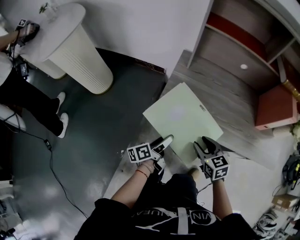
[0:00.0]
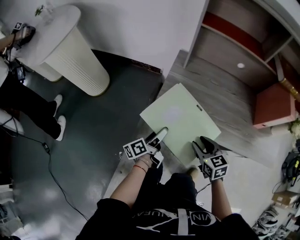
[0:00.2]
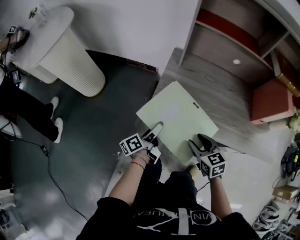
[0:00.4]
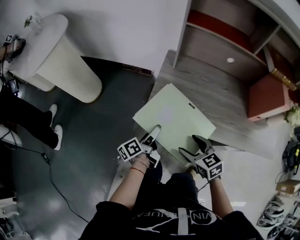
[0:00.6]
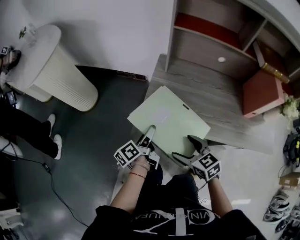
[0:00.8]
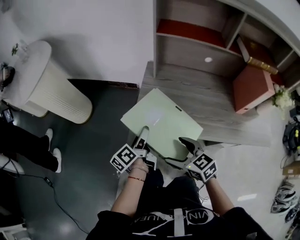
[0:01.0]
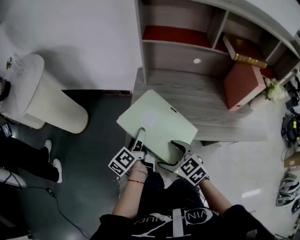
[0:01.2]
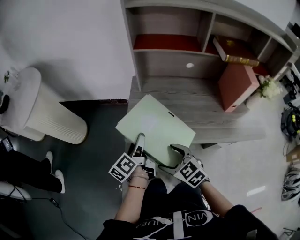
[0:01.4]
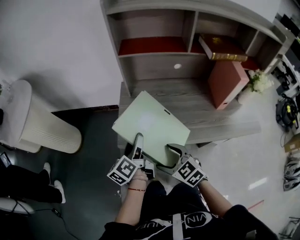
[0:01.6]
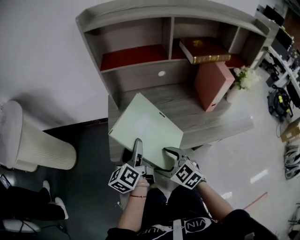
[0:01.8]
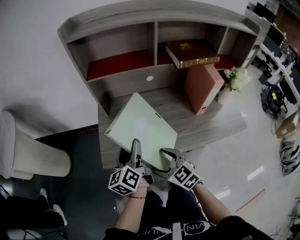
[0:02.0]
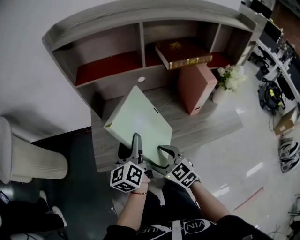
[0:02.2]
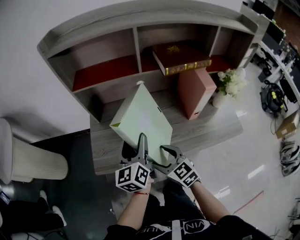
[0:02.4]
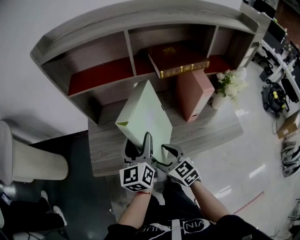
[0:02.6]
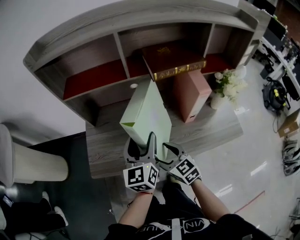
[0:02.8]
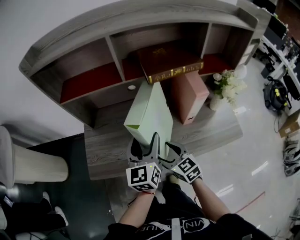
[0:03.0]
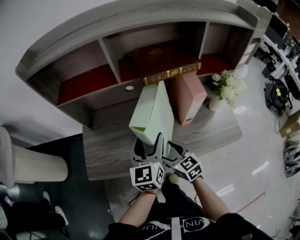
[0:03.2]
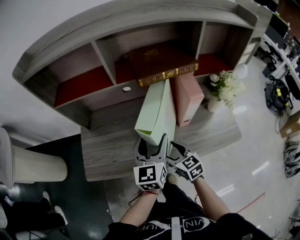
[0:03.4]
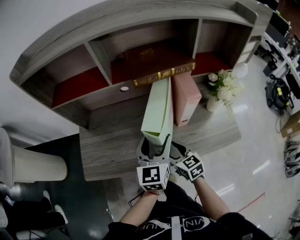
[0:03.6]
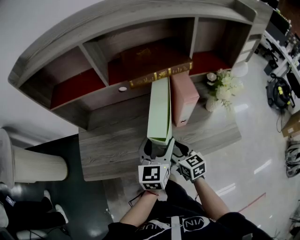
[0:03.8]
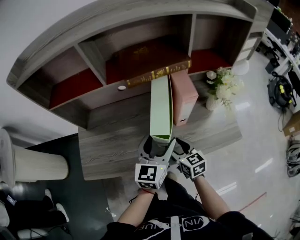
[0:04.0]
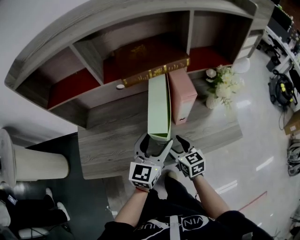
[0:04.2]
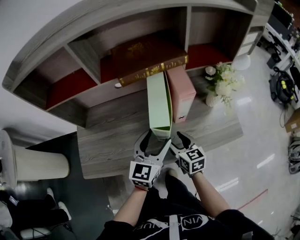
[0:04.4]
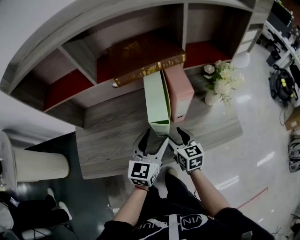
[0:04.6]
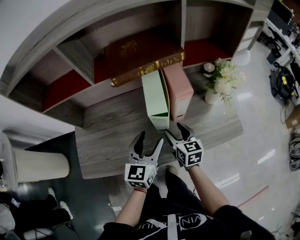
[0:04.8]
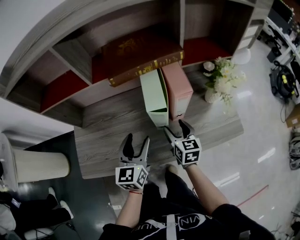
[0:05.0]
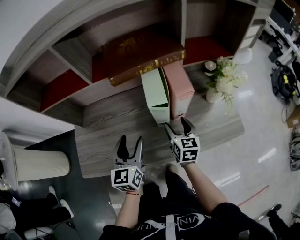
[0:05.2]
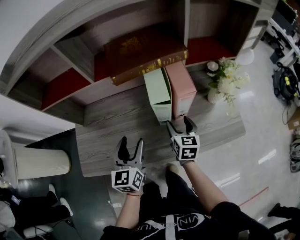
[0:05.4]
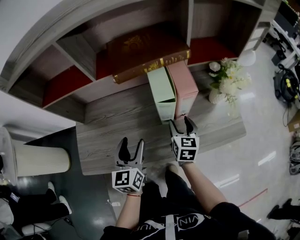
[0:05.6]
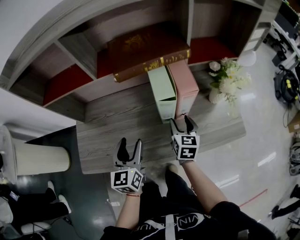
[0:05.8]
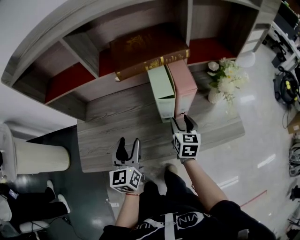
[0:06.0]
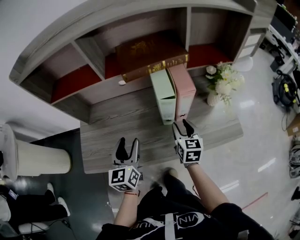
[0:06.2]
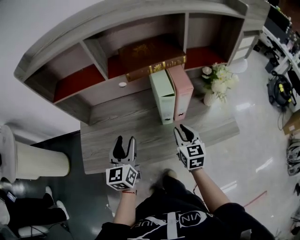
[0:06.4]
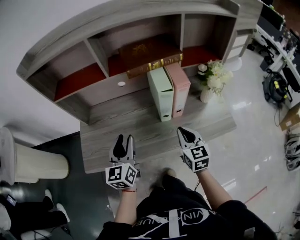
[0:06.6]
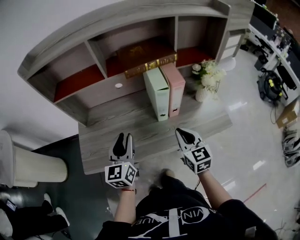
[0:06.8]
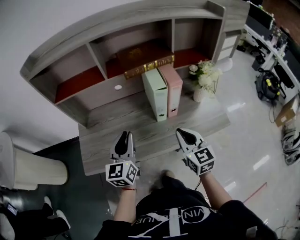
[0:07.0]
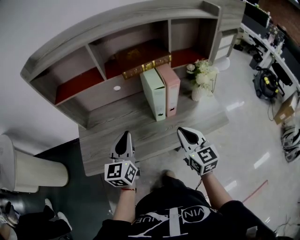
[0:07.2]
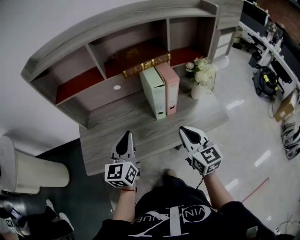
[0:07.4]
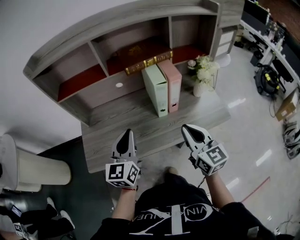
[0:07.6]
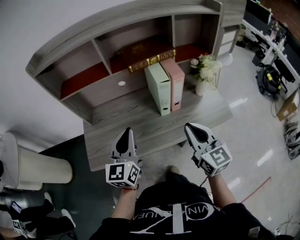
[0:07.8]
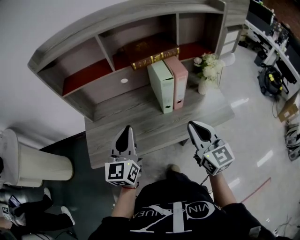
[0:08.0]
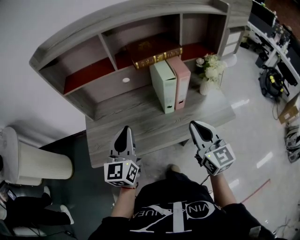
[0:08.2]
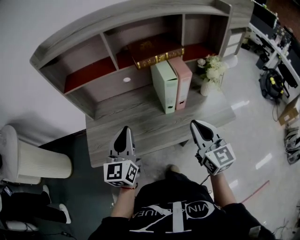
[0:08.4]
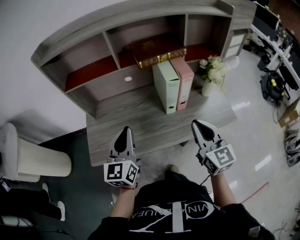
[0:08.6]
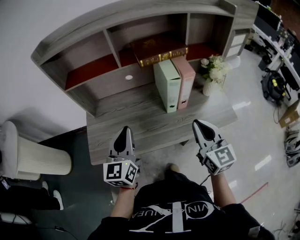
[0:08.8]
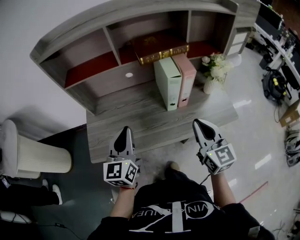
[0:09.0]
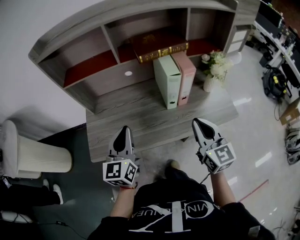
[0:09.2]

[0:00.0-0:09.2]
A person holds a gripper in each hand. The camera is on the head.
0:00.0 to 0:01.6: The right gripper travels upward by roughly 5 cm, and opens, while the left gripper goes approximately 20 cm upward and forward, and changes its angle by roughly 20 degrees.
0:01.6 to 0:03.0: The grippers both shift to the right by approximately 30 cm. The left gripper rotates around the line of its fingers by some 40 degrees, clockwise from behind, while the right gripper swivels about 20 degrees.
0:03.0 to 0:04.6: The left gripper goes approximately 15 cm to the right and downward, and rotates some 20 degrees; the right gripper moves to the right and forward, some 15 cm, and changes its angle by about 20 degrees.
0:04.6 to 0:06.2: The left gripper heads to the left, covering about 15 cm, and turns by some 20 degrees.
0:06.2 to 0:07.6: The left gripper shifts about 10 cm upward and backward, and closes; the right gripper goes some 25 cm upward and backward, swivels some 20 degrees, and closes up.
0:07.6 to 0:09.2: The left gripper moves to the left, approximately 5 cm.

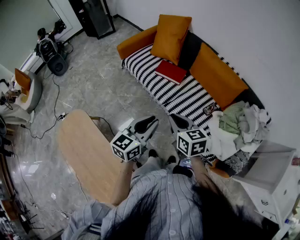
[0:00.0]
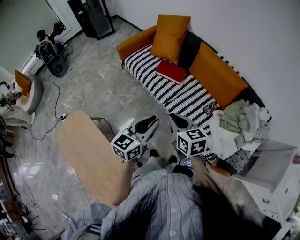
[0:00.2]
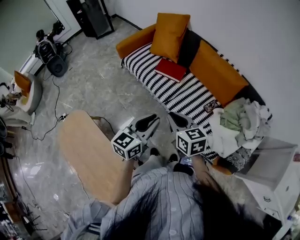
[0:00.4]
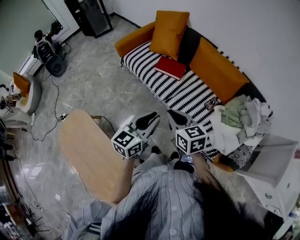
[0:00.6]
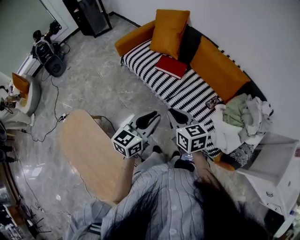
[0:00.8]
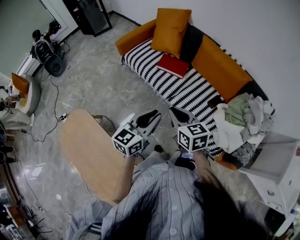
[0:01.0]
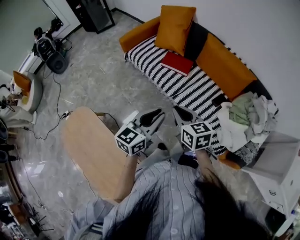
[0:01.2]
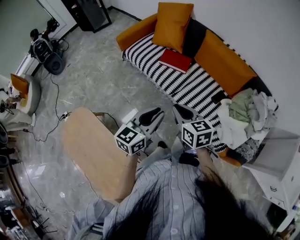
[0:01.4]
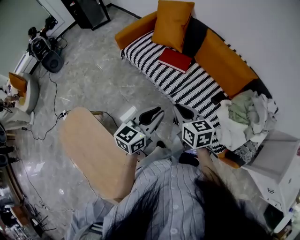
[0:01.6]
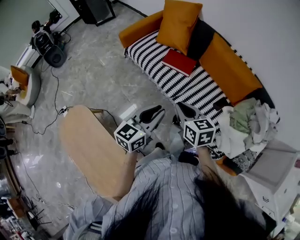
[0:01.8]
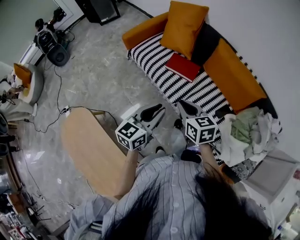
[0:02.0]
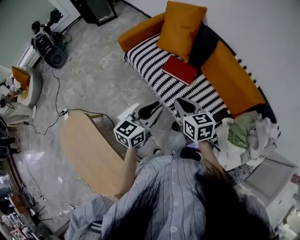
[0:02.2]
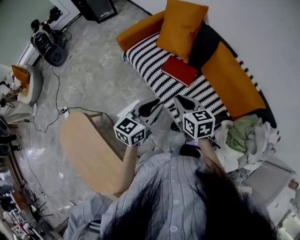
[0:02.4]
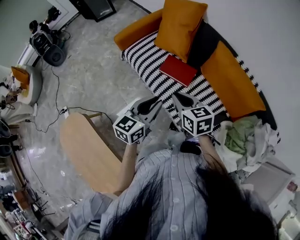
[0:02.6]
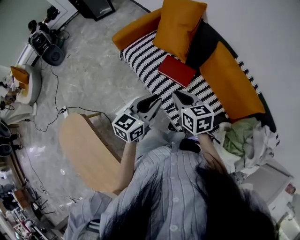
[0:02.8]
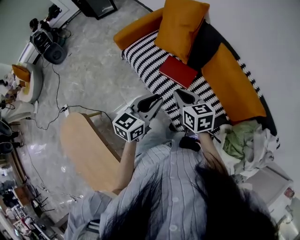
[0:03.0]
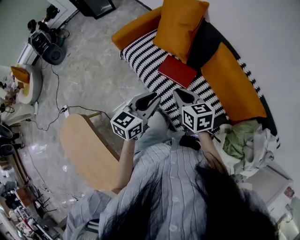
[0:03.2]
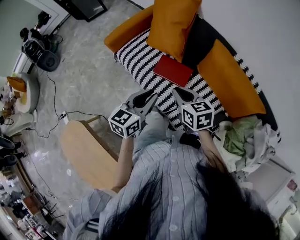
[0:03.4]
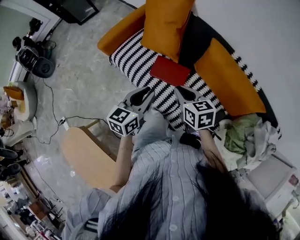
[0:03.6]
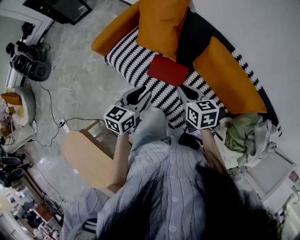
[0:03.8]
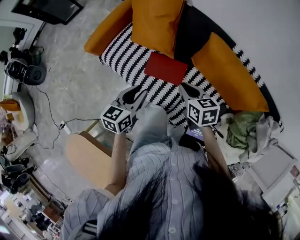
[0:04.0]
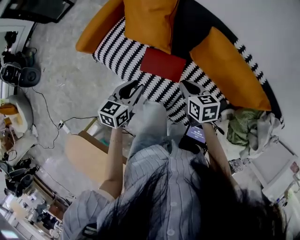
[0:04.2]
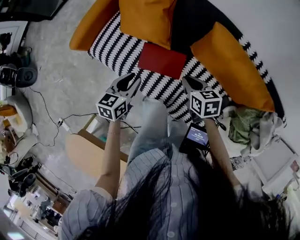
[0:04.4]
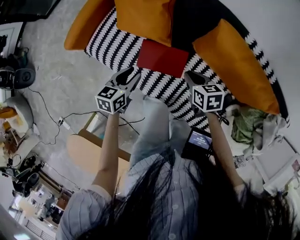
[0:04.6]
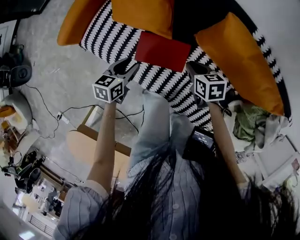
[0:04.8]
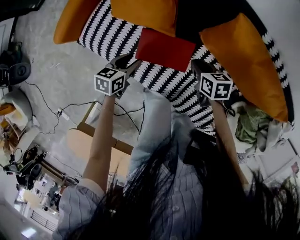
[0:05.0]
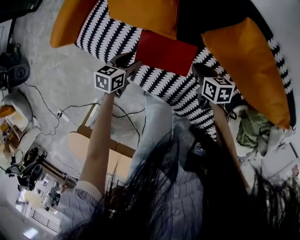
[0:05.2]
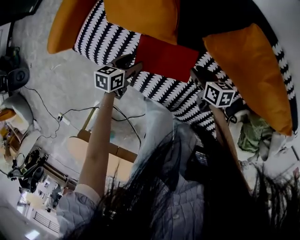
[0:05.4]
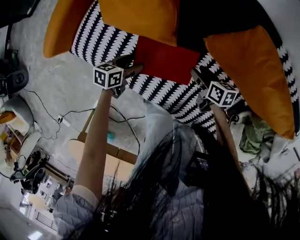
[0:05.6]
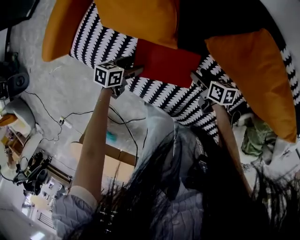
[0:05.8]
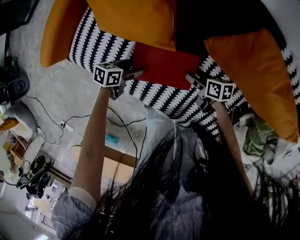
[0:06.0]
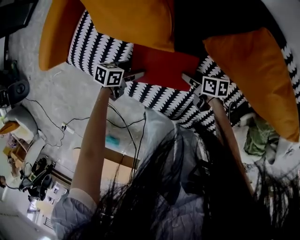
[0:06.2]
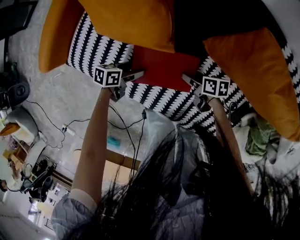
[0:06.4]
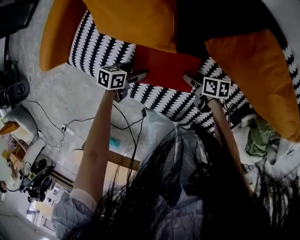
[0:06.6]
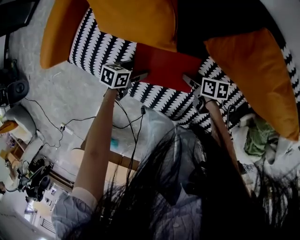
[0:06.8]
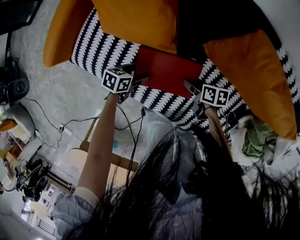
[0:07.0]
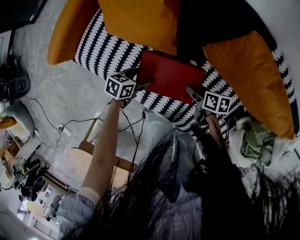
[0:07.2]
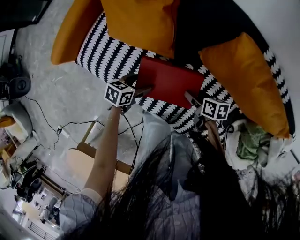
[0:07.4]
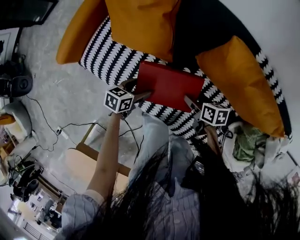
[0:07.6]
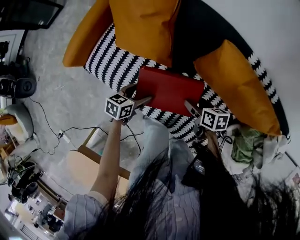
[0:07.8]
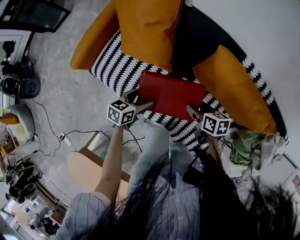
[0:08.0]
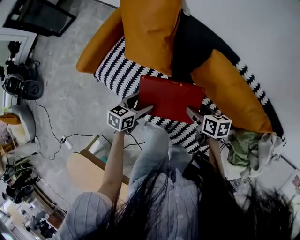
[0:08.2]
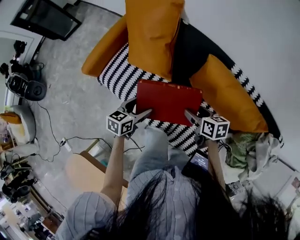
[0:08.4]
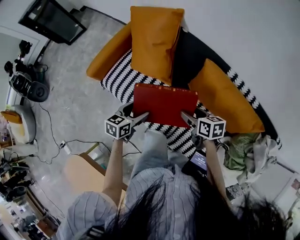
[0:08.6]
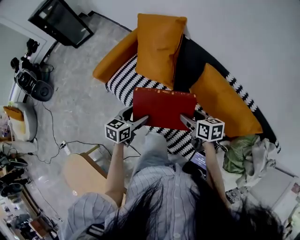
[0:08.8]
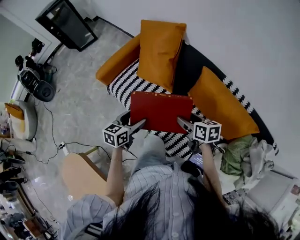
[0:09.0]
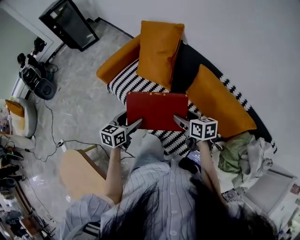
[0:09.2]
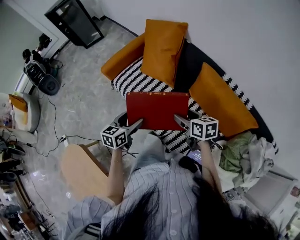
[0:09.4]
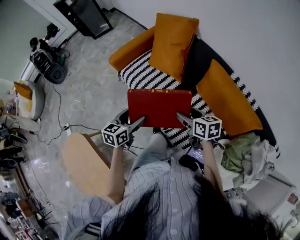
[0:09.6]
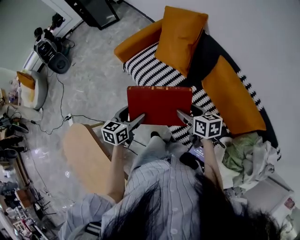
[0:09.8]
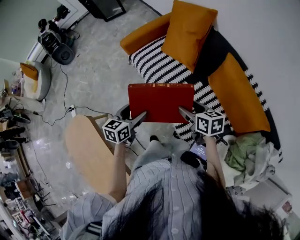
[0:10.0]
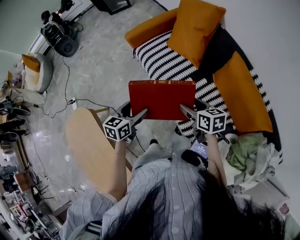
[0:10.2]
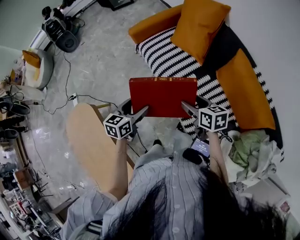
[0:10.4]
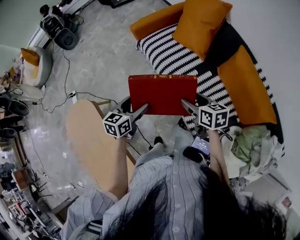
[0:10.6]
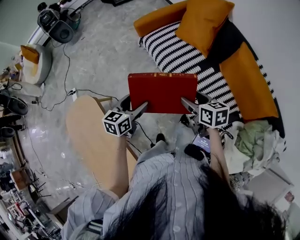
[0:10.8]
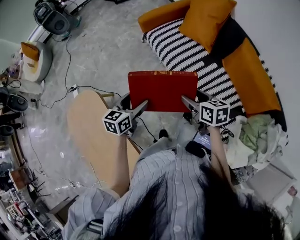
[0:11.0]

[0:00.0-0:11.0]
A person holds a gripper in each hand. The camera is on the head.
0:00.0 to 0:01.6: The left gripper shifts by some 5 cm, while the right gripper changes place by some 5 cm.
0:01.6 to 0:03.2: The grippers both shift forward by about 30 cm.
0:03.2 to 0:04.8: Both grippers travel together downward and forward, some 40 cm. The right gripper rotates approximately 30 degrees, while the left gripper changes its angle by roughly 30 degrees.
0:04.8 to 0:06.2: The two grippers go some 20 cm downward. The right gripper rotates some 30 degrees, and opens; the left gripper changes its angle by roughly 30 degrees, and opens up.
0:06.2 to 0:07.8: Both grippers travel together upward, about 20 cm.
0:07.8 to 0:09.4: Both grippers move upward and backward, roughly 30 cm. The right gripper swivels roughly 30 degrees, while the left gripper rotates about 40 degrees.
0:09.4 to 0:11.0: The two grippers go roughly 25 cm to the left and backward.

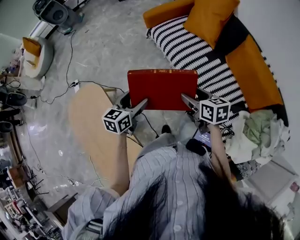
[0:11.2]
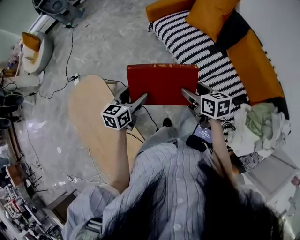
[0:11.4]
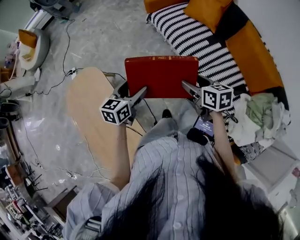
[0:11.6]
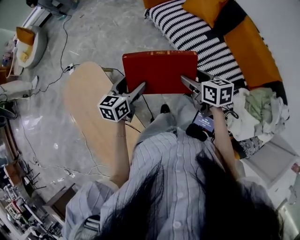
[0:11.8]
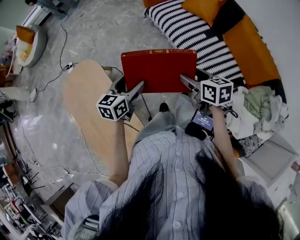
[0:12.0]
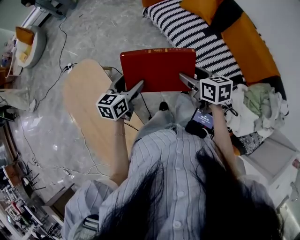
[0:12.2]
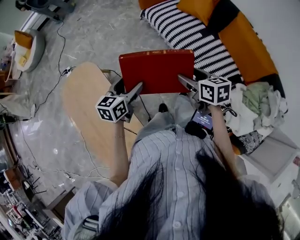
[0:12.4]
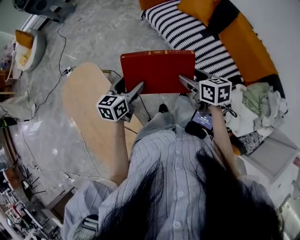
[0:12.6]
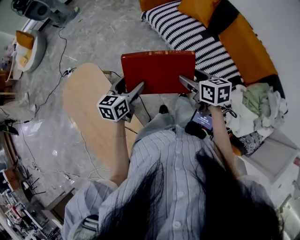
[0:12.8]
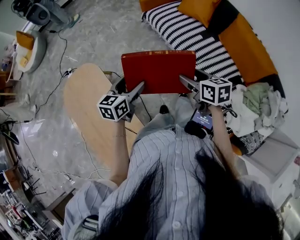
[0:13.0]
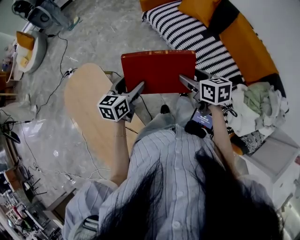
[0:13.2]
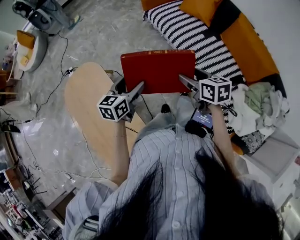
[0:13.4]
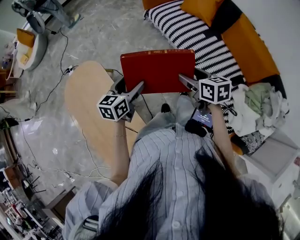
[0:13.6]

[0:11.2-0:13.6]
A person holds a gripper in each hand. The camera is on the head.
0:11.2 to 0:12.4: The grippers both shift backward by about 10 cm.
0:12.4 to 0:13.6: There are only small adjustments of the grippers.

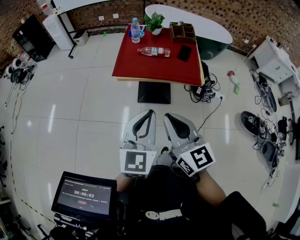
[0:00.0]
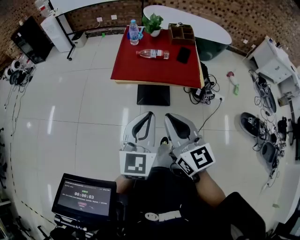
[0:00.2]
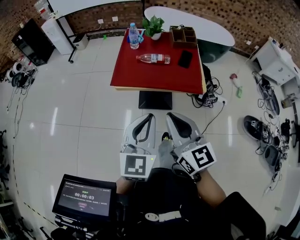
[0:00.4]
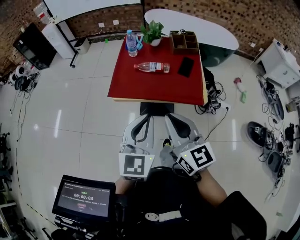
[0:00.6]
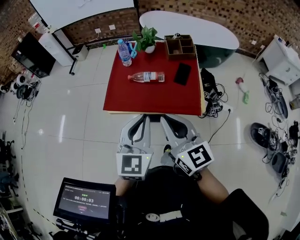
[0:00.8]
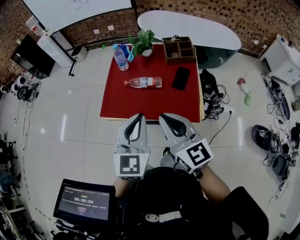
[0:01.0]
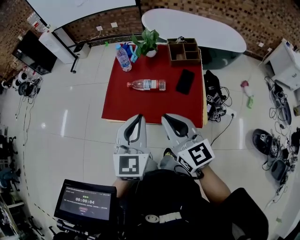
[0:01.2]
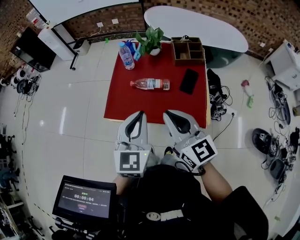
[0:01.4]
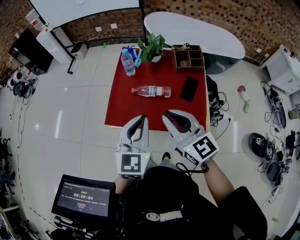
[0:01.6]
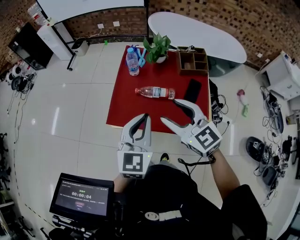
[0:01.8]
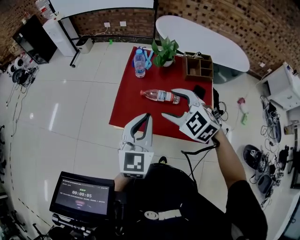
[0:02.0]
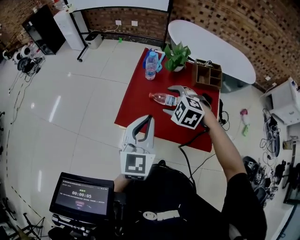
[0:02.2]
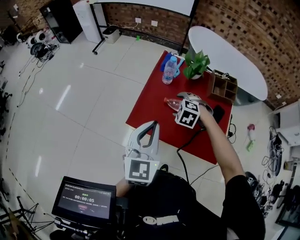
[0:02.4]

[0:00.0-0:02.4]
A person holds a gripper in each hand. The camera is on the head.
0:00.0 to 0:01.2: The grippers both shift forward and to the right by roughly 30 cm.
0:01.2 to 0:02.4: The right gripper moves forward and downward, some 35 cm, angles its fingers downward, by about 60 degrees, and opens. Meanwhile the left gripper travels to the left and forward by some 15 cm.
